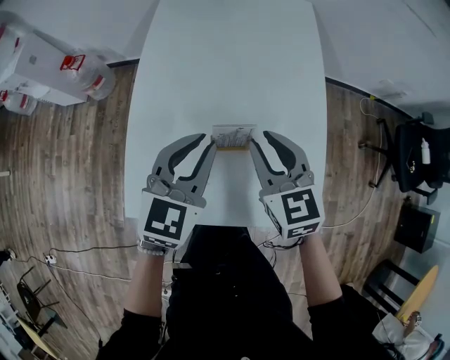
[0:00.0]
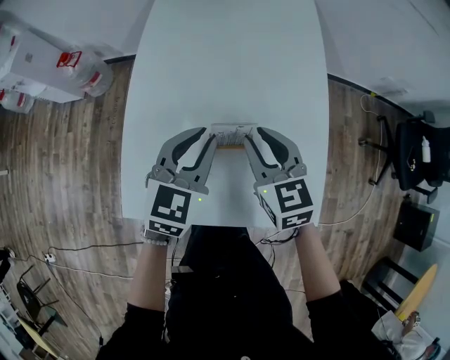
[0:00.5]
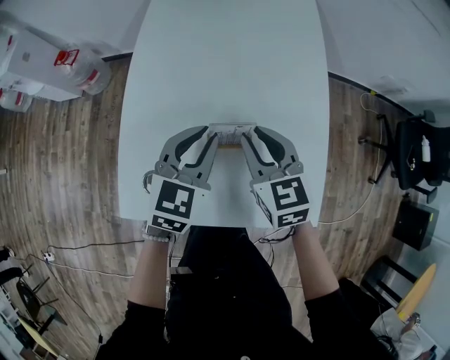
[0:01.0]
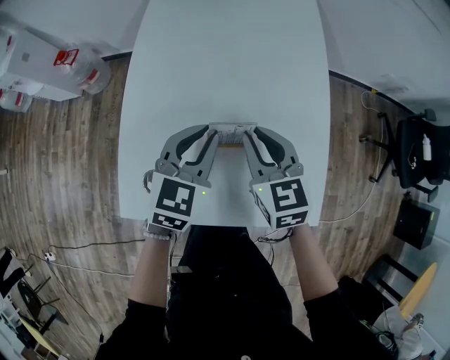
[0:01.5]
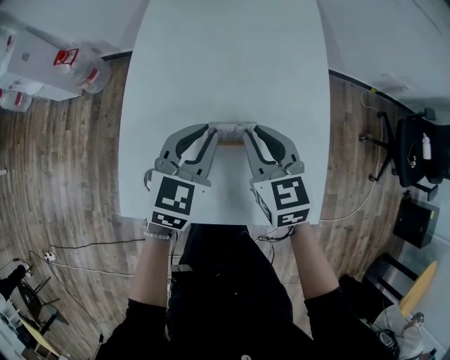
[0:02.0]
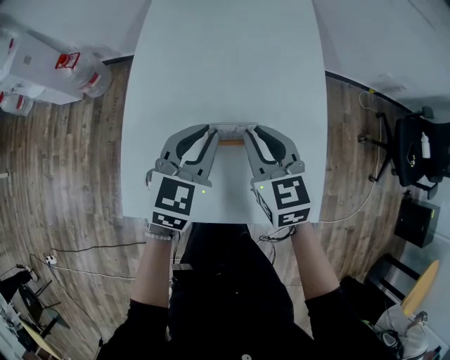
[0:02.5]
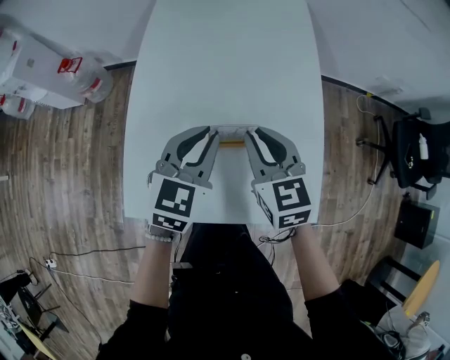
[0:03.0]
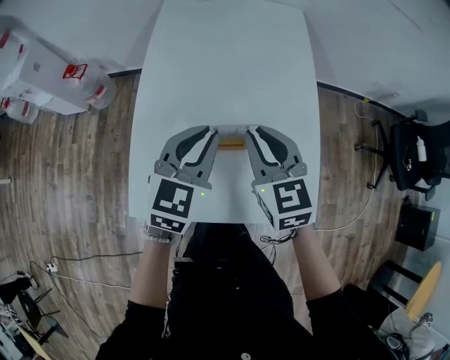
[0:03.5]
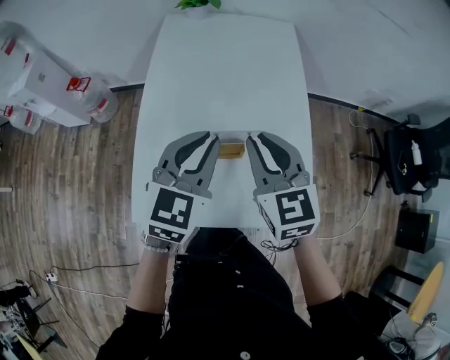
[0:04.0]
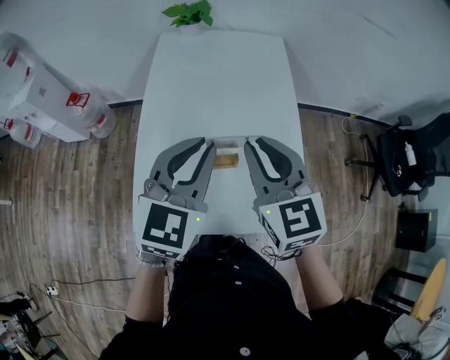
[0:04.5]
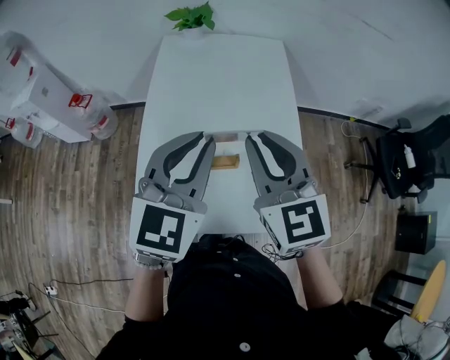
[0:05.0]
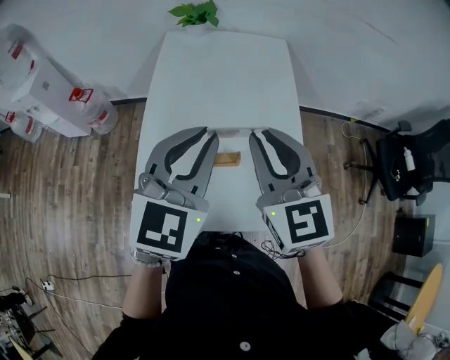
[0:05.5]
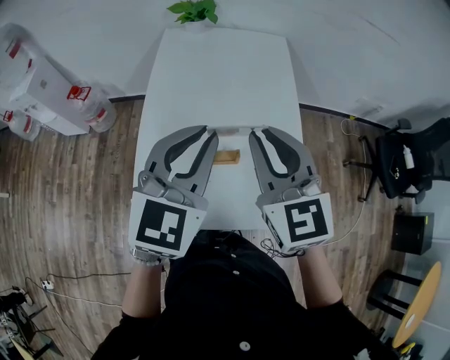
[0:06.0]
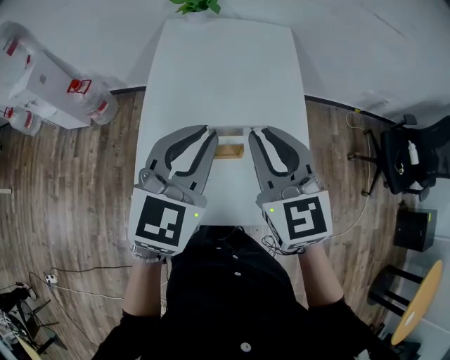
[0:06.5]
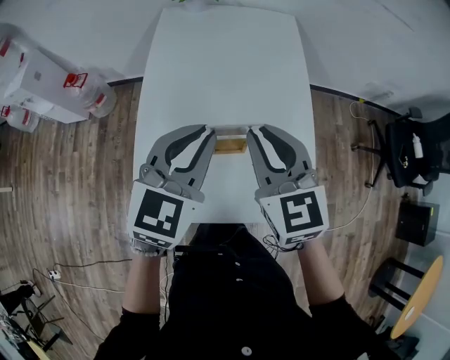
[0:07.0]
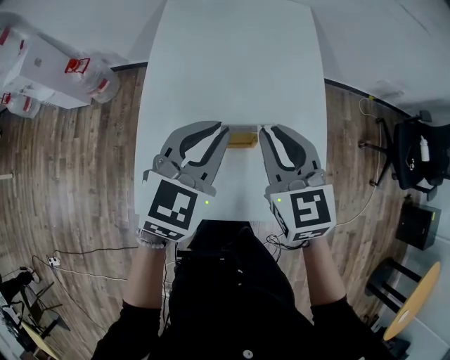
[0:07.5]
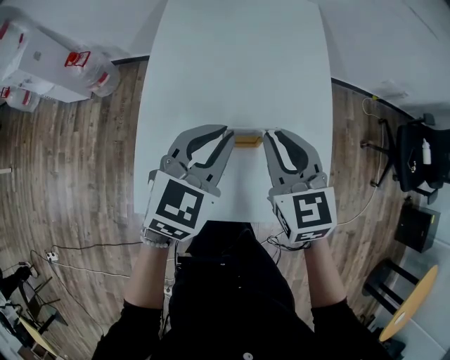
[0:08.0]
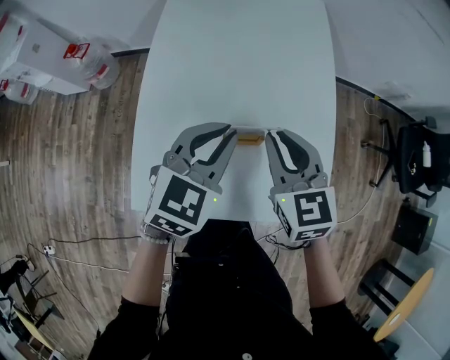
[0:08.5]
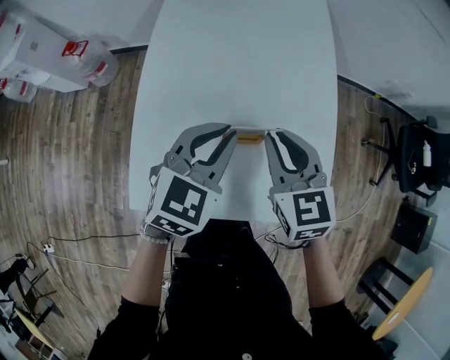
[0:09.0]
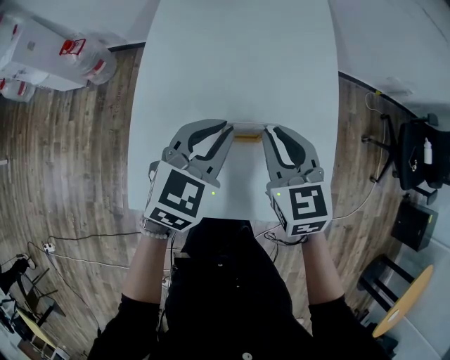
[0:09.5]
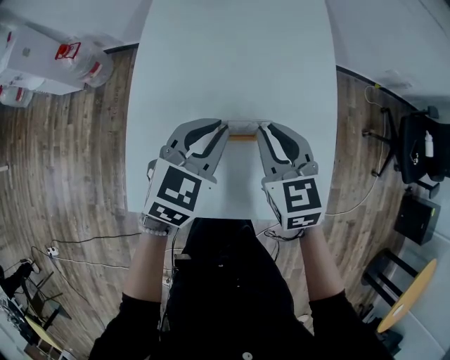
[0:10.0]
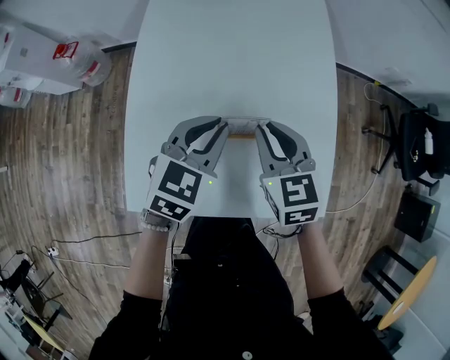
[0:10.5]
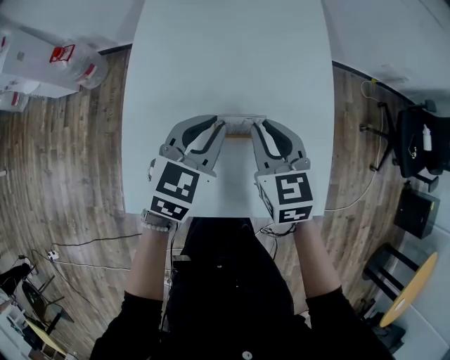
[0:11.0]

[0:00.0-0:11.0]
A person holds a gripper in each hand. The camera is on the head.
0.0 to 2.0 s: The left gripper is displaced downward by some 5 cm.
2.0 to 3.5 s: The two grippers go roughly 5 cm upward.
3.5 to 5.5 s: The two grippers go about 15 cm upward.
5.5 to 7.5 s: The two grippers go approximately 10 cm downward.
7.5 to 9.0 s: Both grippers travel together downward, about 5 cm.
9.0 to 11.0 s: The grippers make only small movements.

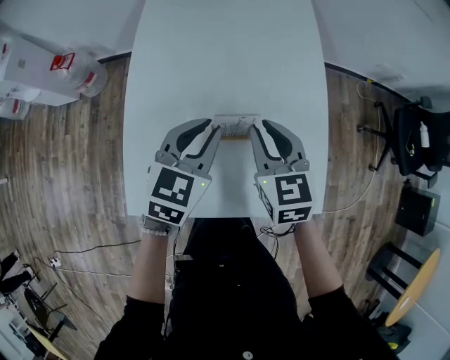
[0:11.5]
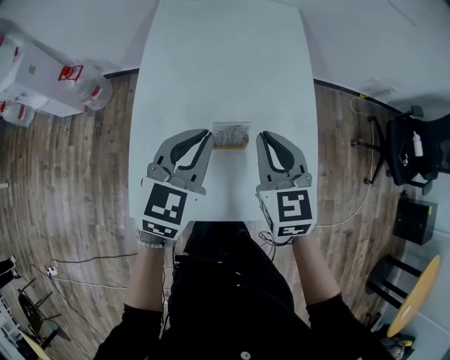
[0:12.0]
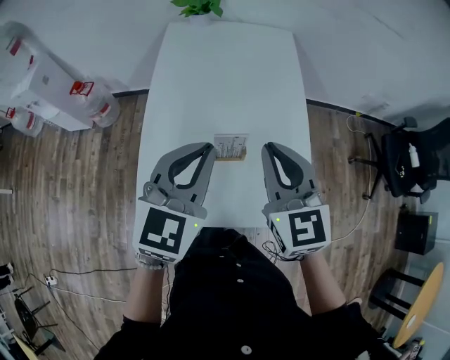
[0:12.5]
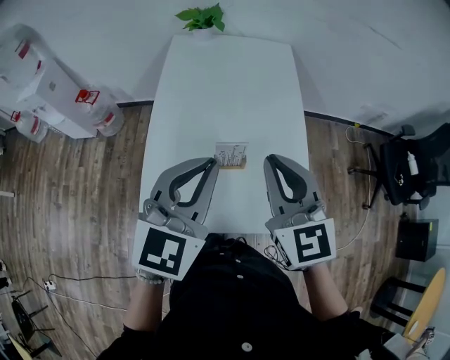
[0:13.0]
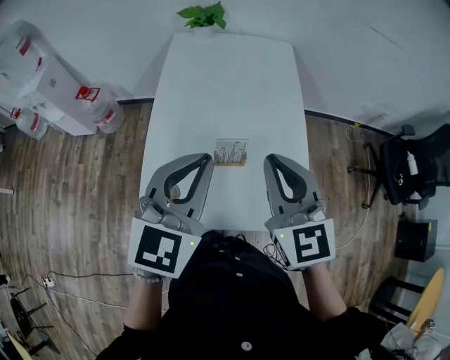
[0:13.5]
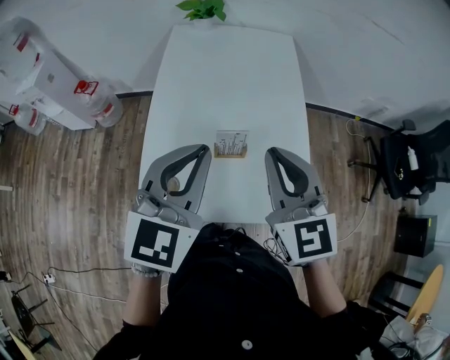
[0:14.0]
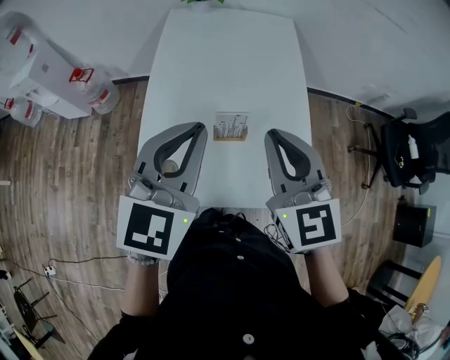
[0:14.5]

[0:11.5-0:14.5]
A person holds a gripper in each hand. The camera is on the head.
11.5 to 13.0 s: The left gripper goes some 20 cm upward and backward; the right gripper goes about 20 cm upward, and turns by some 20 degrees.
13.0 to 14.5 s: There are only small adjustments of the grippers.

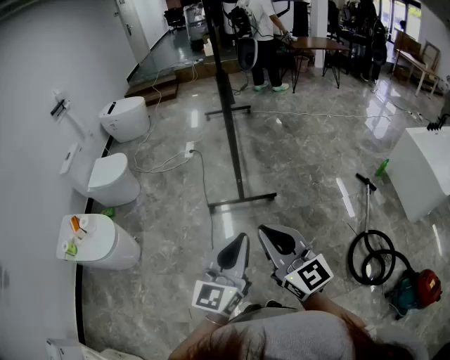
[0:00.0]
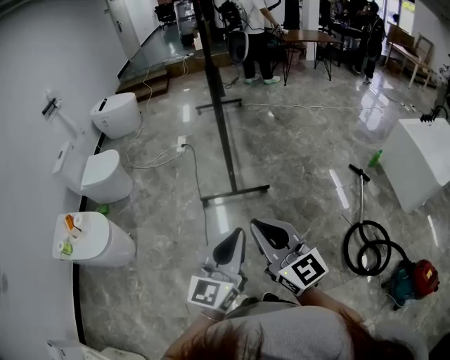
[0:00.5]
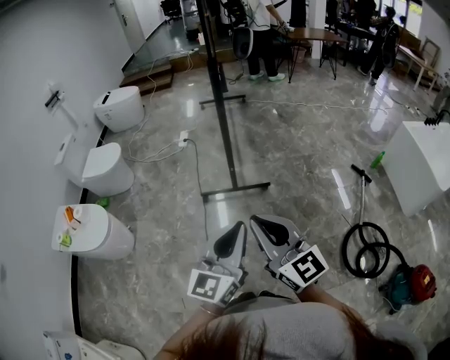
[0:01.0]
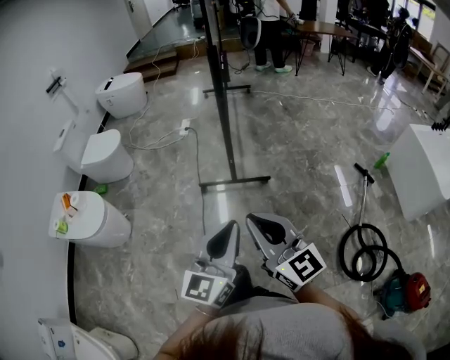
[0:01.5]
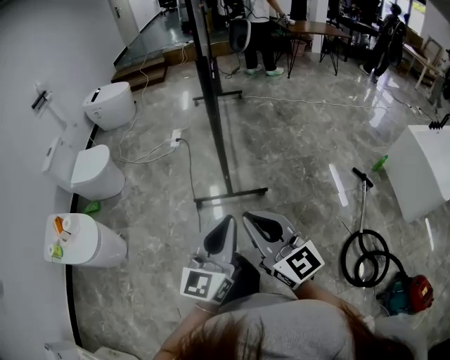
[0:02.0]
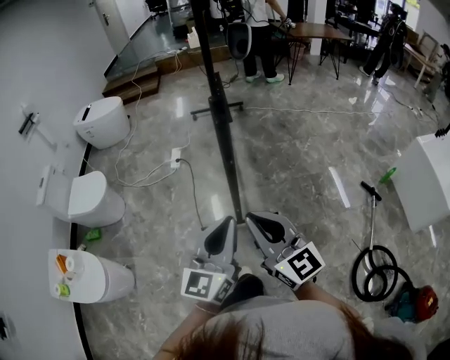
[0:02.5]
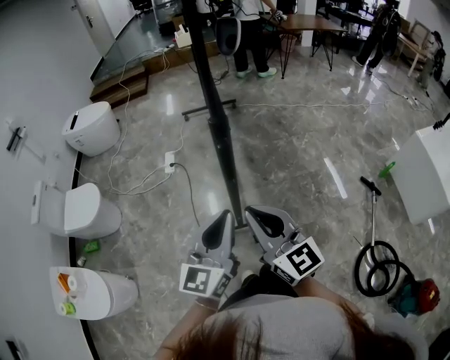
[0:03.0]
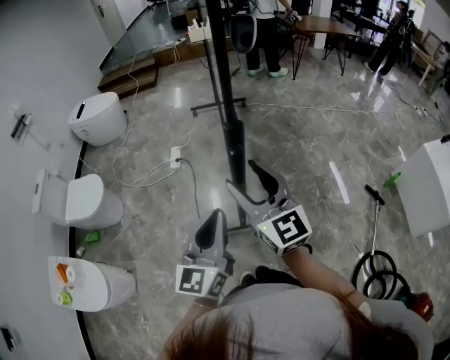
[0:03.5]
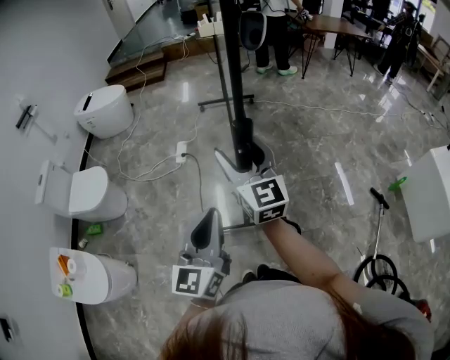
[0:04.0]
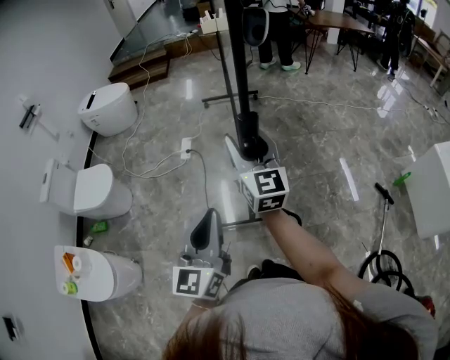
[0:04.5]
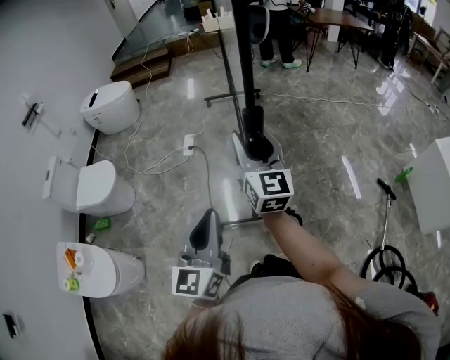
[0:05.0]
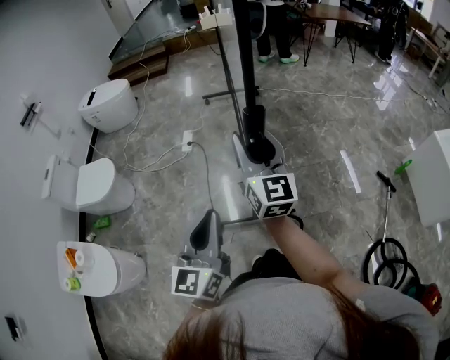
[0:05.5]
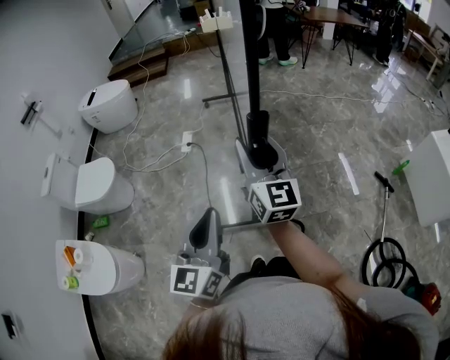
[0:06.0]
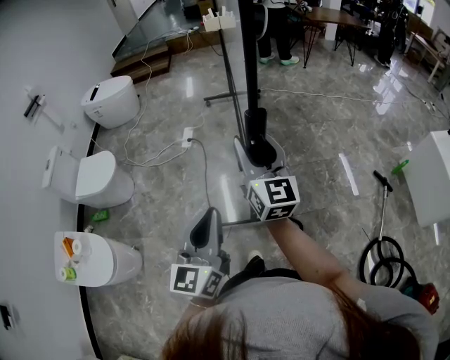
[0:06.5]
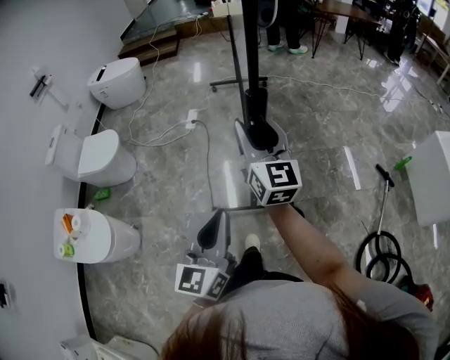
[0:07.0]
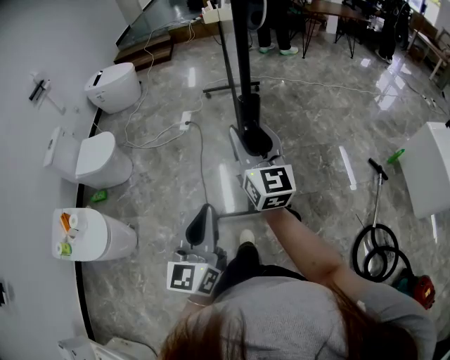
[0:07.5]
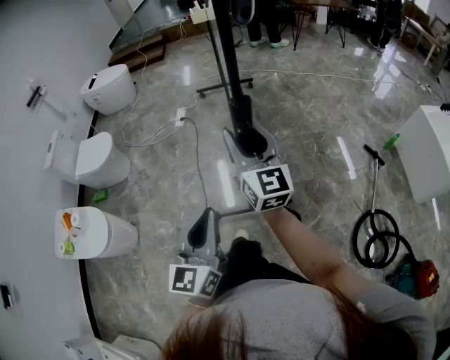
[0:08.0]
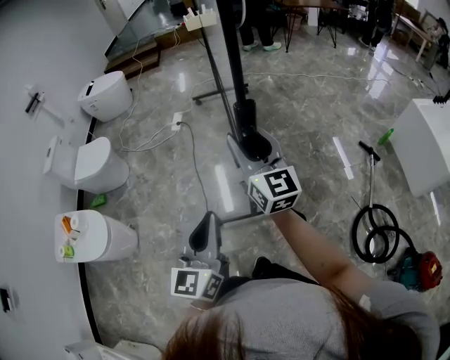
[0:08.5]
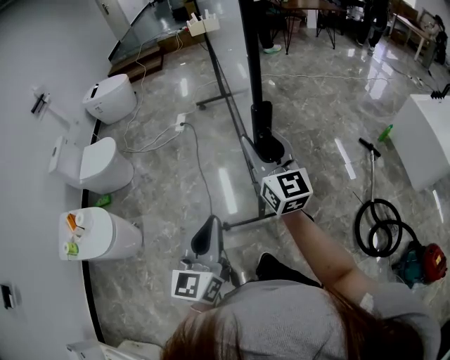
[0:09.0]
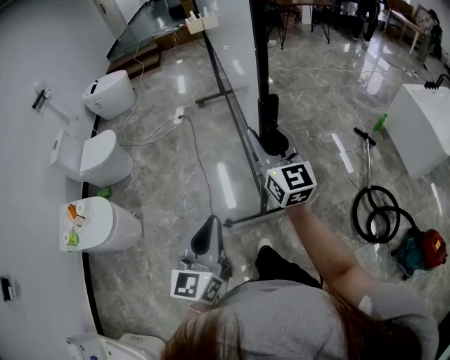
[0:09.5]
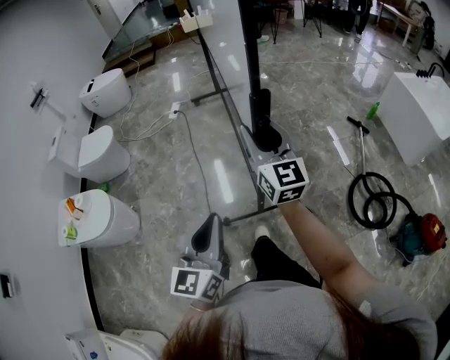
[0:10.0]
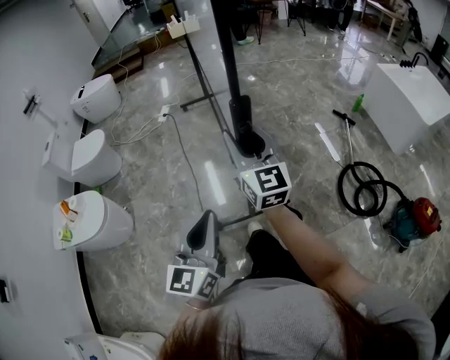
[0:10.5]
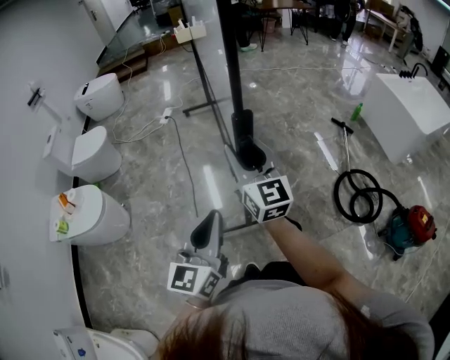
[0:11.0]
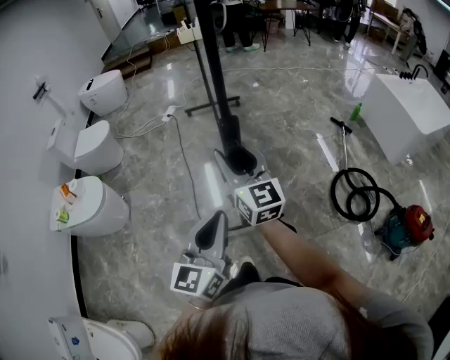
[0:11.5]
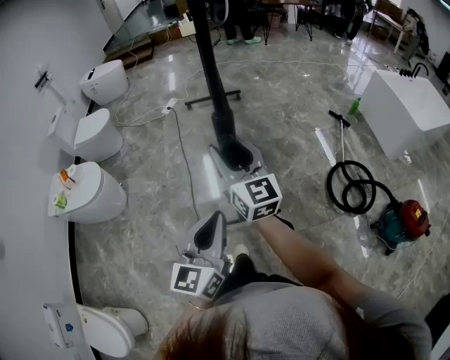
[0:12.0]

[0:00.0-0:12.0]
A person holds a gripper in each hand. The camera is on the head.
0.0 to 2.0 s: Both grippers travel together forward, some 10 cm.
2.0 to 4.0 s: The two grippers go approximately 40 cm forward. The right gripper opens up.
4.0 to 6.0 s: The two grippers go about 10 cm backward. The right gripper closes up.
6.0 to 8.0 s: Both grippers move backward, about 20 cm.
8.0 to 10.0 s: The grippers both shift backward by approximately 25 cm.
10.0 to 12.0 s: The right gripper goes about 20 cm backward. Meanwhile the left gripper moves backward and to the right, about 20 cm.

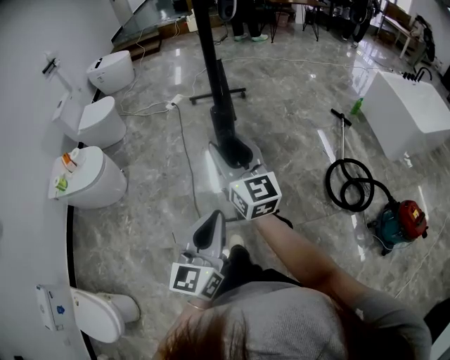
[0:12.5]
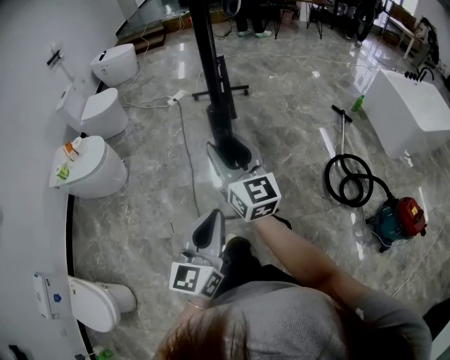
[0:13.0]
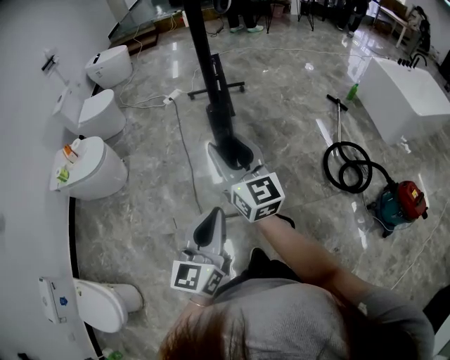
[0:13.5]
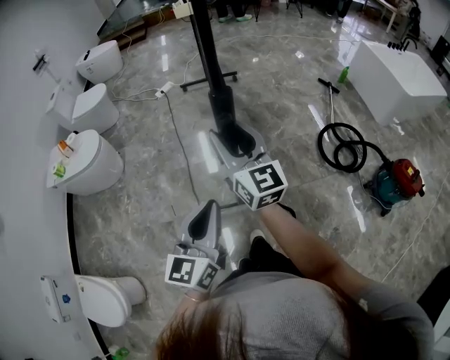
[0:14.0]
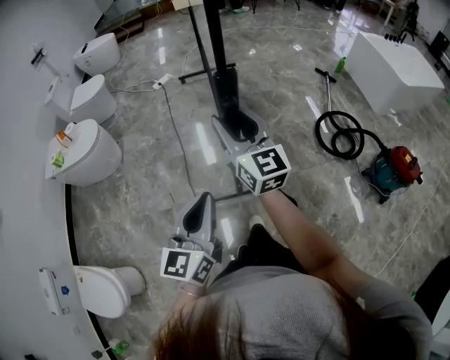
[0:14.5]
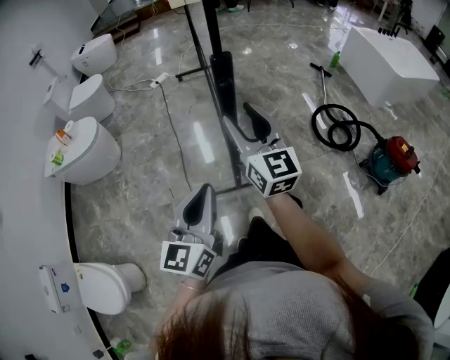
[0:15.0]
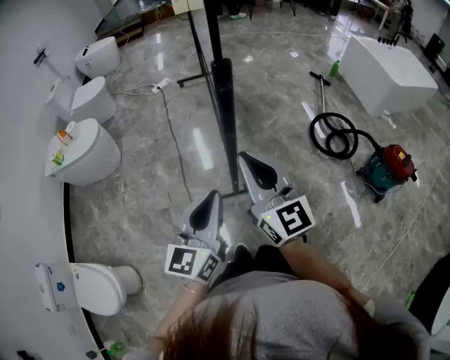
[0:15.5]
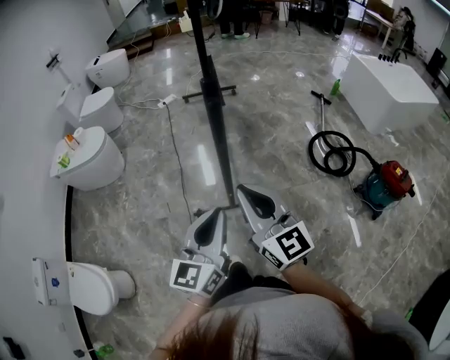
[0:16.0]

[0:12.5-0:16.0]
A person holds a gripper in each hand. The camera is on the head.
12.5 to 14.5 s: The two grippers go about 15 cm backward.
14.5 to 16.0 s: The left gripper moves backward and to the right, approximately 10 cm. The right gripper moves backward, about 20 cm, and closes its fingers.
